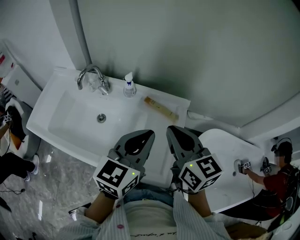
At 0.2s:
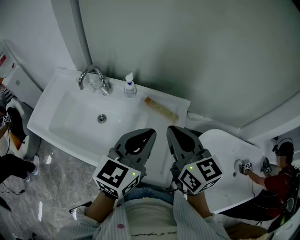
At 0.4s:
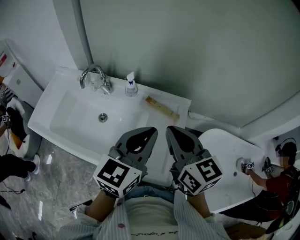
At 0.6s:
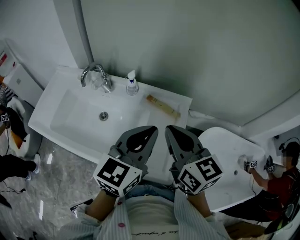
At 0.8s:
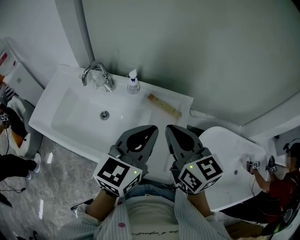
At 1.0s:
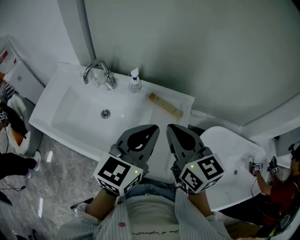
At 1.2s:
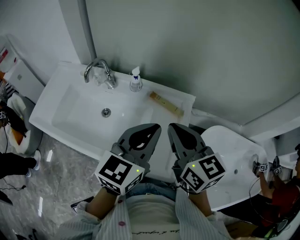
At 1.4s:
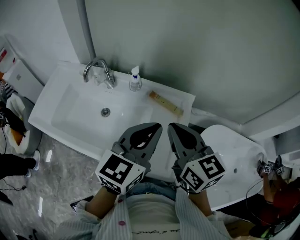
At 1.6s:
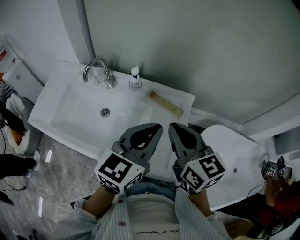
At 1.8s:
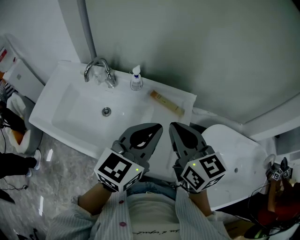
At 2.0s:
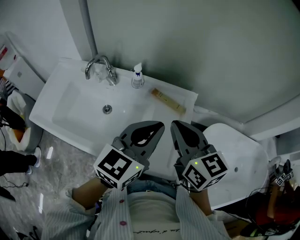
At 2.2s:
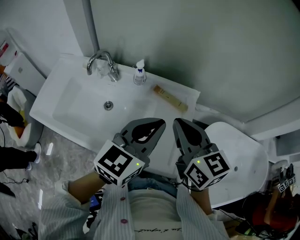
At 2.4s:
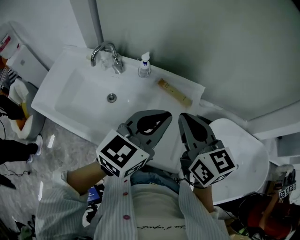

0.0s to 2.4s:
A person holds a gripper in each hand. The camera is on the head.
0.0s to 2.4s: The grippers stay close to where they were, moving slightly.

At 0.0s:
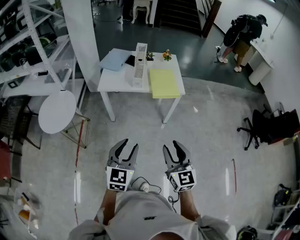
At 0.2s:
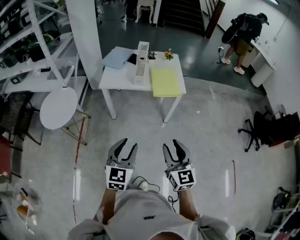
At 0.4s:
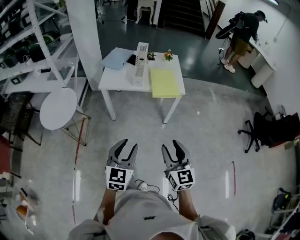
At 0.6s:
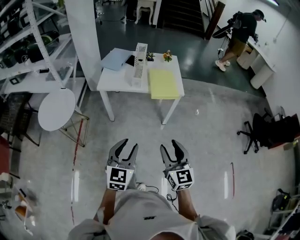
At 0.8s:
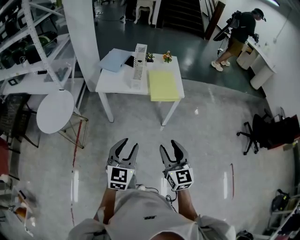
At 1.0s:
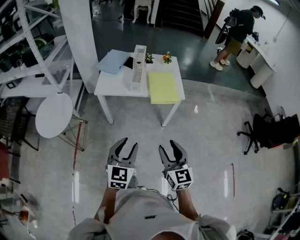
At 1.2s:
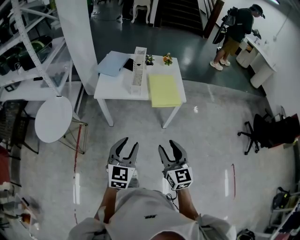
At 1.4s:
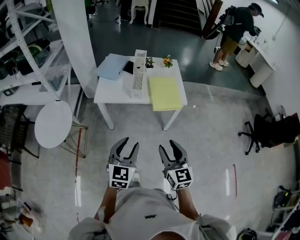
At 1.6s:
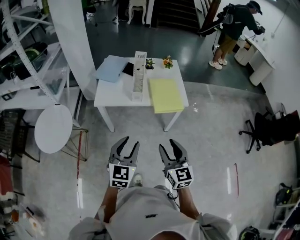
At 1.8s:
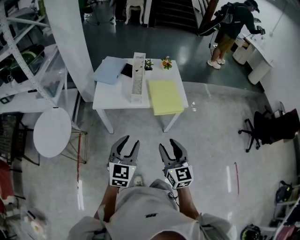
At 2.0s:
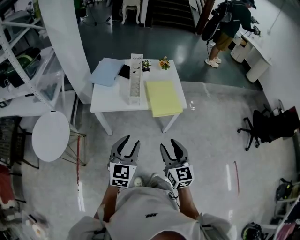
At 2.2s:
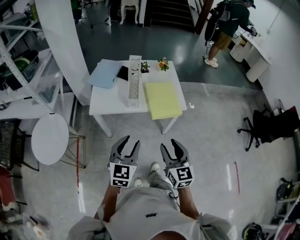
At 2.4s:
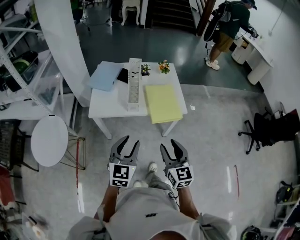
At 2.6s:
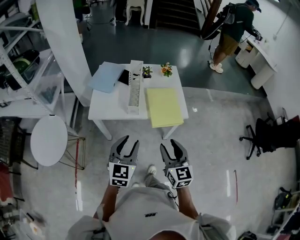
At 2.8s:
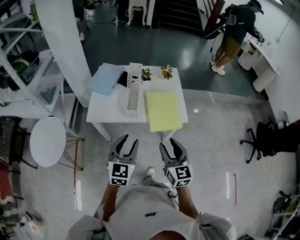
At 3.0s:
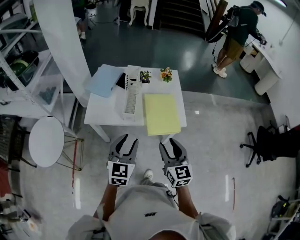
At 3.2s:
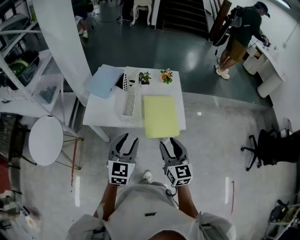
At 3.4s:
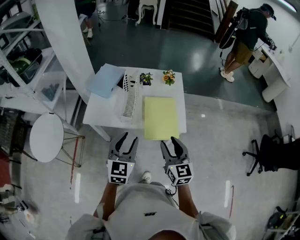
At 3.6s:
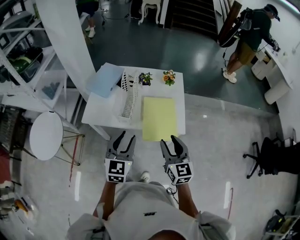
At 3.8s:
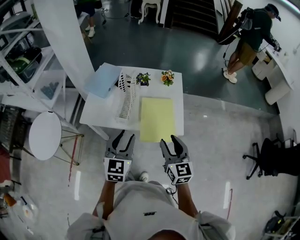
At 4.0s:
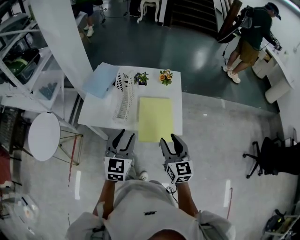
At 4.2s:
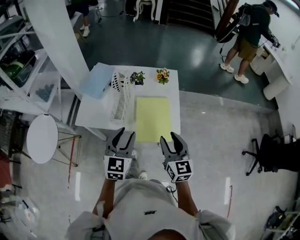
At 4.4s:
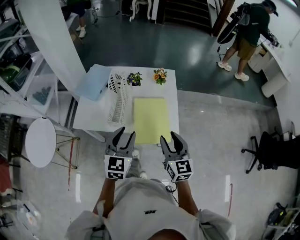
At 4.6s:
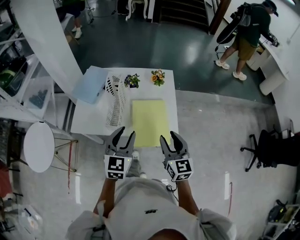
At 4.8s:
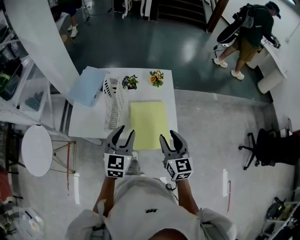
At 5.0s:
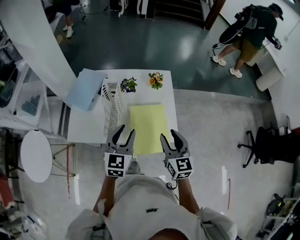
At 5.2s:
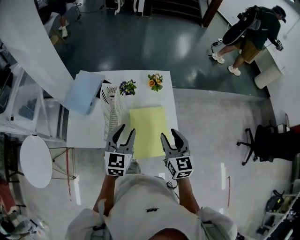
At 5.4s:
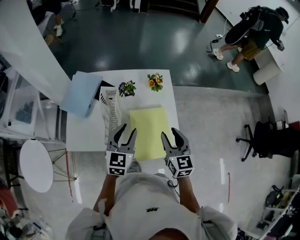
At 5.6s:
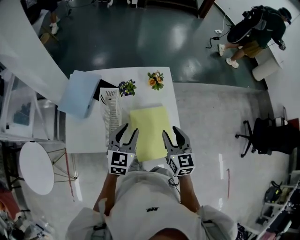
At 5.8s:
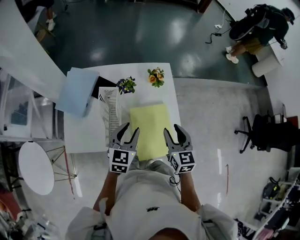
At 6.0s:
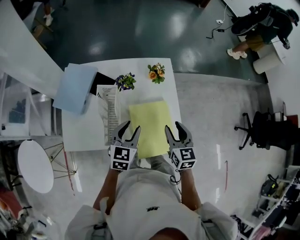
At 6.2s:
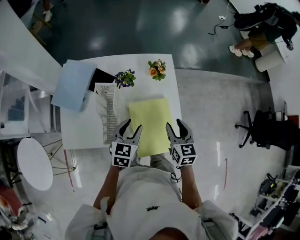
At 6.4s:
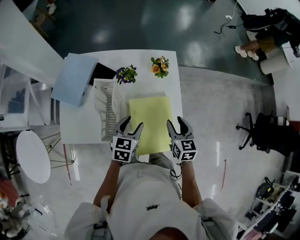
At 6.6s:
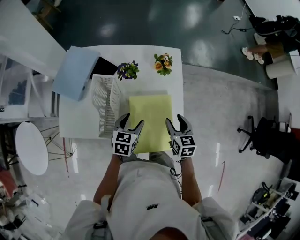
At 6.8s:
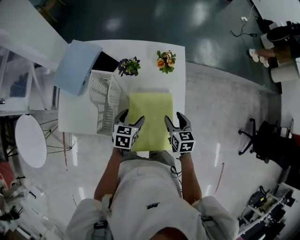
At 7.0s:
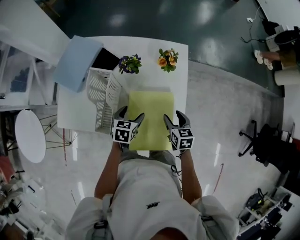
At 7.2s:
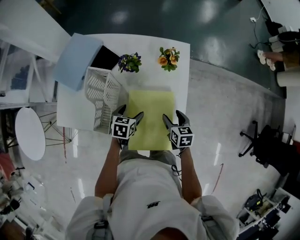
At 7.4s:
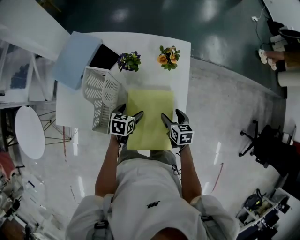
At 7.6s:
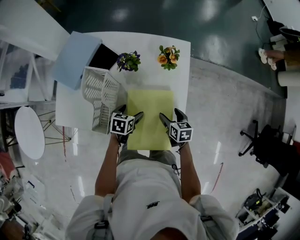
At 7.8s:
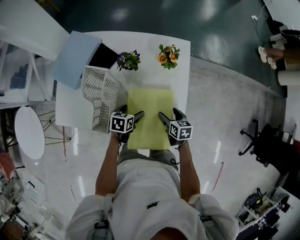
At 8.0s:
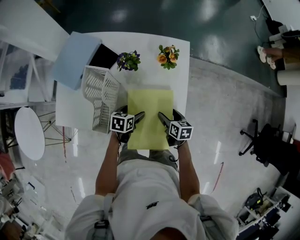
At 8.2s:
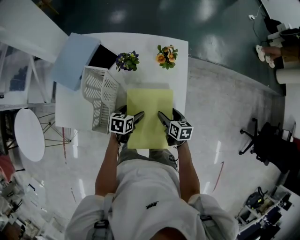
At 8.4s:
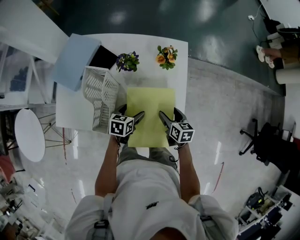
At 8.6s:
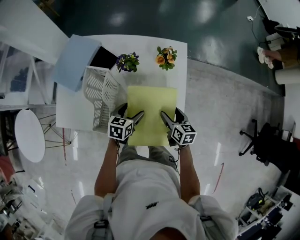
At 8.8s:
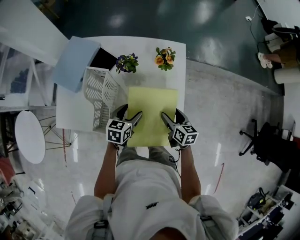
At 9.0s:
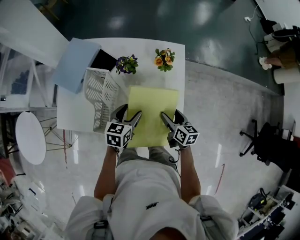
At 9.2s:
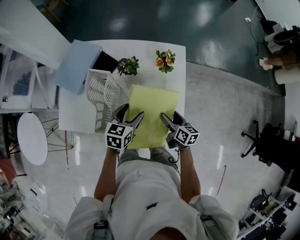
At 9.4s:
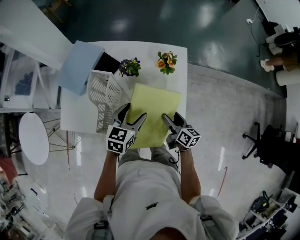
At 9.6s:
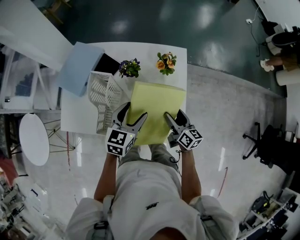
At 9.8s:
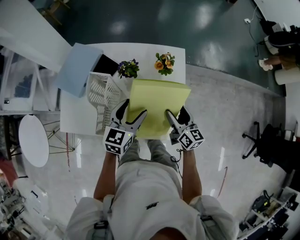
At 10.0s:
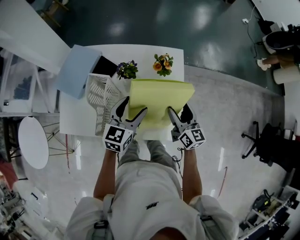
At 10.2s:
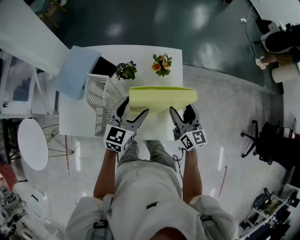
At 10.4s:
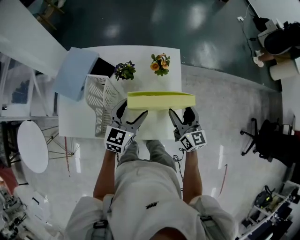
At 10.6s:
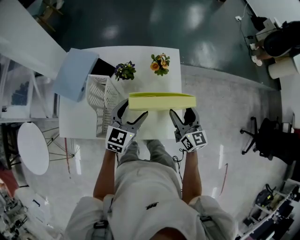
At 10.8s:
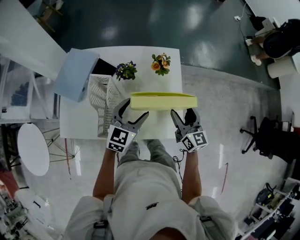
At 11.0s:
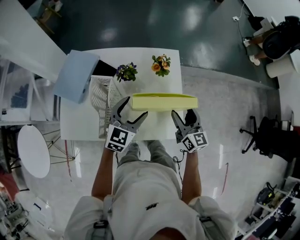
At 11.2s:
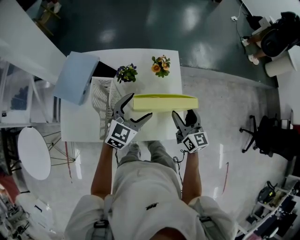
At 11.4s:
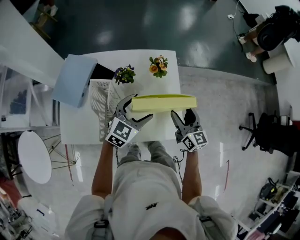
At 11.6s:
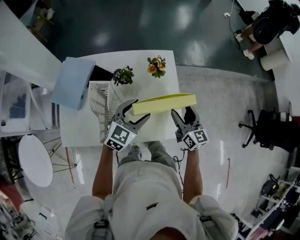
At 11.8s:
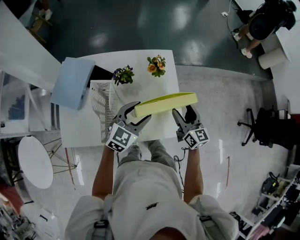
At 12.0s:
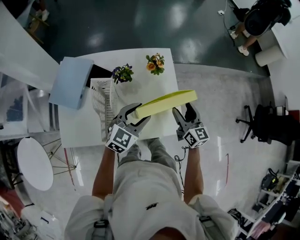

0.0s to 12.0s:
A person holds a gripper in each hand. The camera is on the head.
0.0s to 1.6s: The two grippers go approximately 20 cm forward.
1.6s to 3.0s: Both grippers move forward, some 20 cm.
3.0s to 4.4s: The right gripper heads to the right and forward, covering roughly 15 cm; the left gripper heads forward and to the right, covering some 15 cm.
4.4s to 6.0s: Both grippers move forward and downward, roughly 25 cm. The left gripper changes its angle by roughly 20 degrees.
6.0s to 7.6s: The two grippers go about 20 cm downward. The right gripper changes its angle by some 30 degrees, and opens its fingers; the left gripper changes its angle by roughly 40 degrees, and opens.
7.6s to 9.0s: The left gripper heads upward, covering about 10 cm, and turns by roughly 20 degrees; the right gripper turns by roughly 20 degrees.
9.0s to 10.4s: Both grippers move upward, about 10 cm. The left gripper swivels about 30 degrees. Meanwhile the right gripper rotates about 30 degrees.
10.4s to 12.0s: The left gripper rotates about 30 degrees.

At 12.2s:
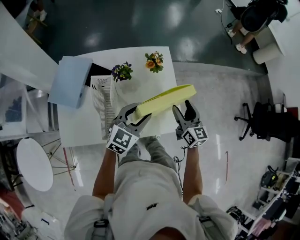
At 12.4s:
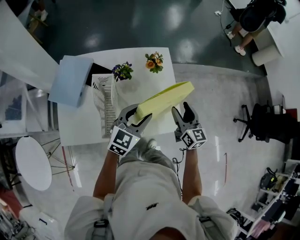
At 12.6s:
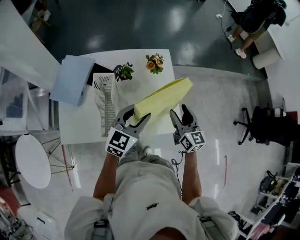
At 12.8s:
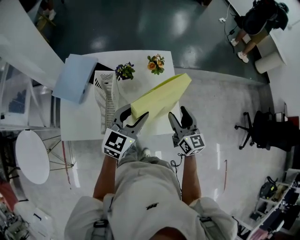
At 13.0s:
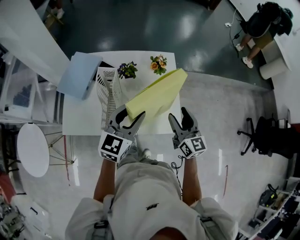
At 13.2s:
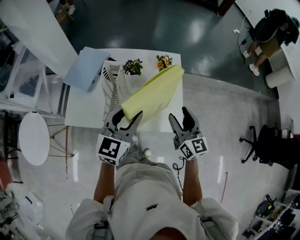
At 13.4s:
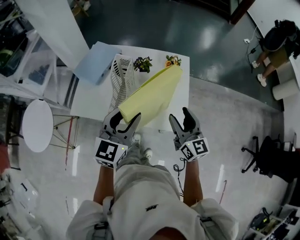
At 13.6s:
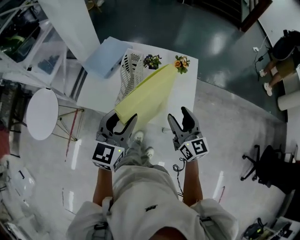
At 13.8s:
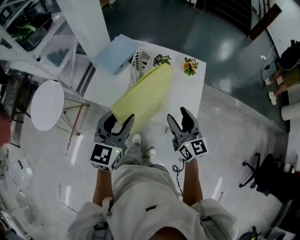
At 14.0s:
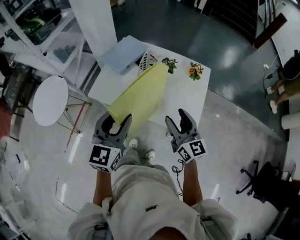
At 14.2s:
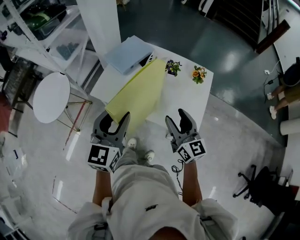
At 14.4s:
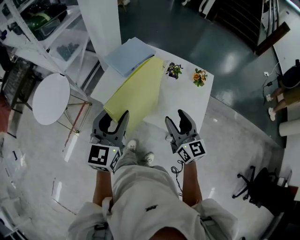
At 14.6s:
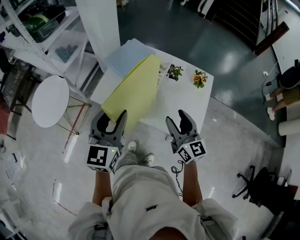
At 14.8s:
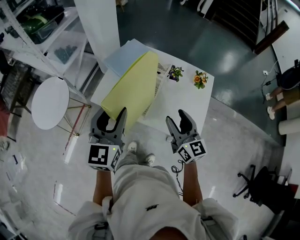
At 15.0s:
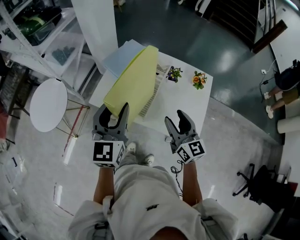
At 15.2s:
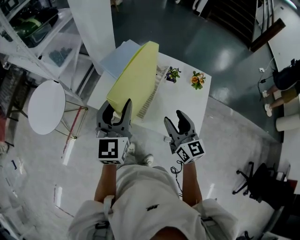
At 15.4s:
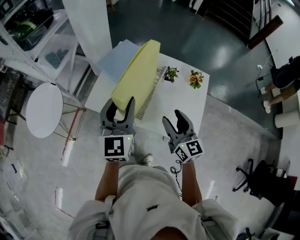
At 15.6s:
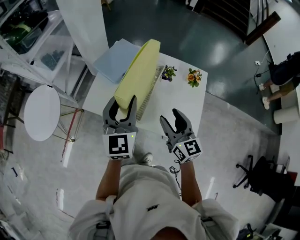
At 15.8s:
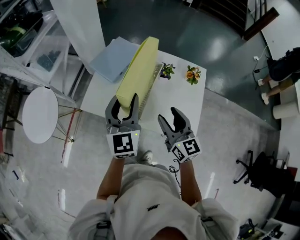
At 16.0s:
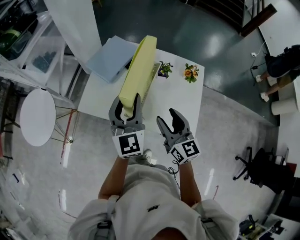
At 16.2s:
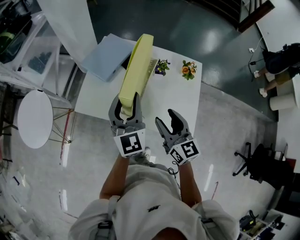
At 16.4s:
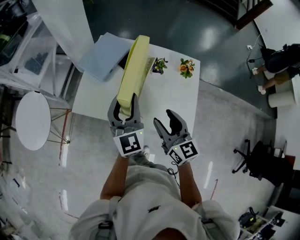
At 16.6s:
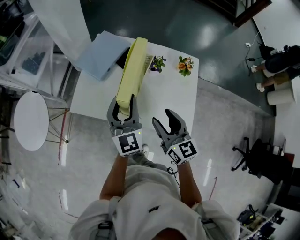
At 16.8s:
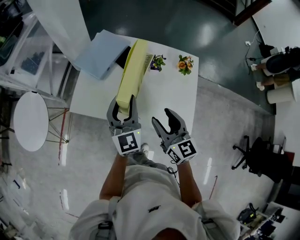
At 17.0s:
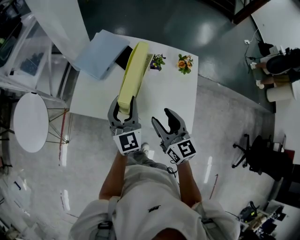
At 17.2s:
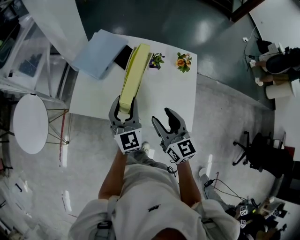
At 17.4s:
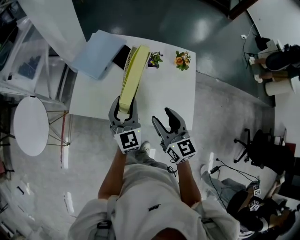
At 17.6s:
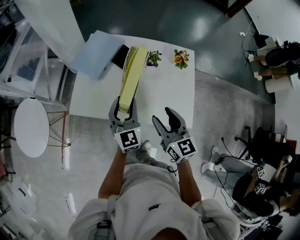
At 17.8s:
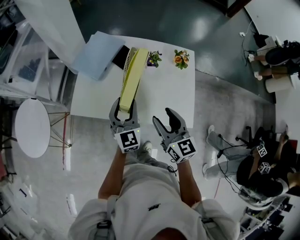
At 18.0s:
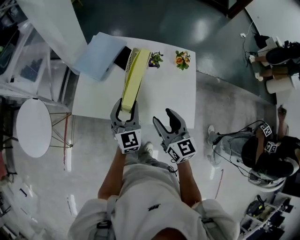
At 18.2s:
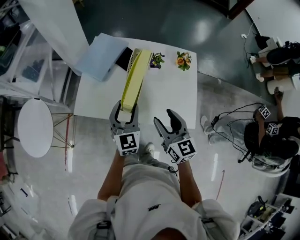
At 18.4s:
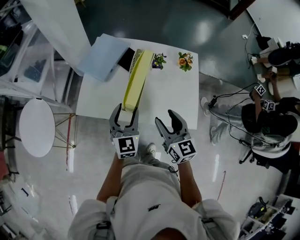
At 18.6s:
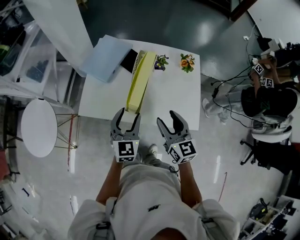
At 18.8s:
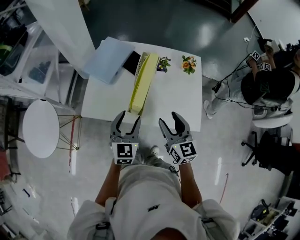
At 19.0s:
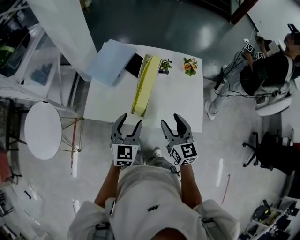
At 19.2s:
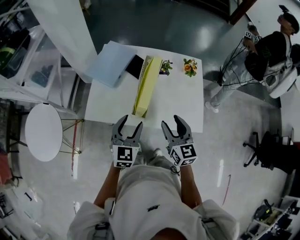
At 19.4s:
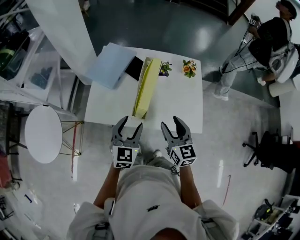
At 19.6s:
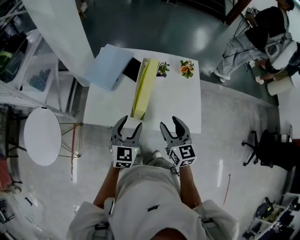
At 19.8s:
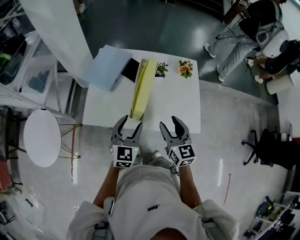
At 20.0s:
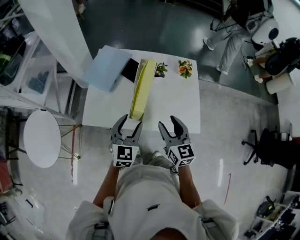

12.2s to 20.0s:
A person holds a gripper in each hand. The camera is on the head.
12.2s to 13.8s: The left gripper changes place by approximately 25 cm, and rotates about 40 degrees. The right gripper shifts by roughly 20 cm, and swivels some 30 degrees.
13.8s to 15.4s: Both grippers travel together forward and to the left, some 10 cm.
15.4s to 16.8s: The left gripper shifts roughly 10 cm downward and to the right.
16.8s to 18.4s: The left gripper heads downward, covering approximately 5 cm.
18.4s to 20.0s: The grippers move only a little.

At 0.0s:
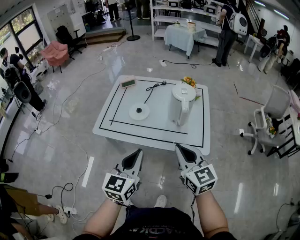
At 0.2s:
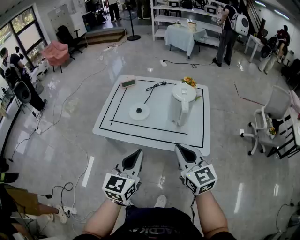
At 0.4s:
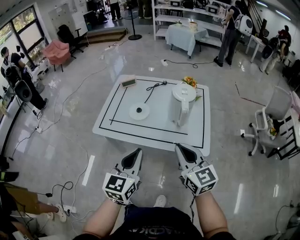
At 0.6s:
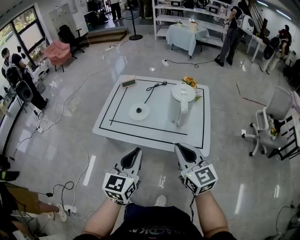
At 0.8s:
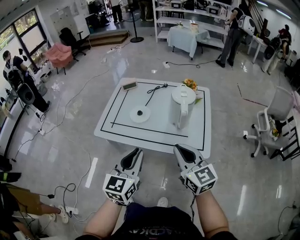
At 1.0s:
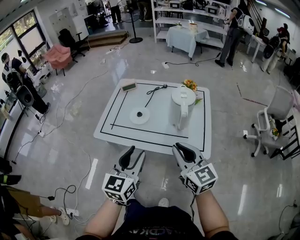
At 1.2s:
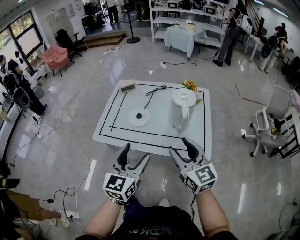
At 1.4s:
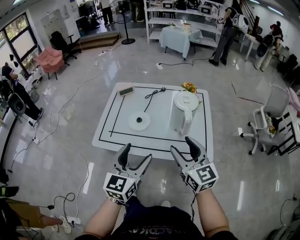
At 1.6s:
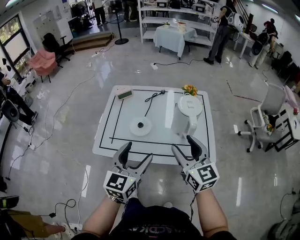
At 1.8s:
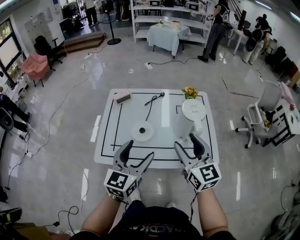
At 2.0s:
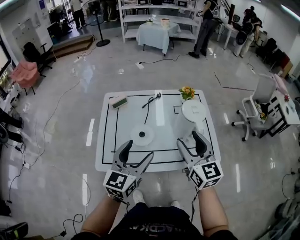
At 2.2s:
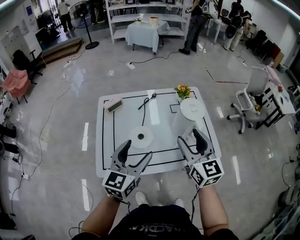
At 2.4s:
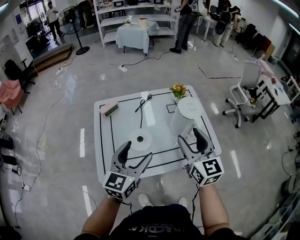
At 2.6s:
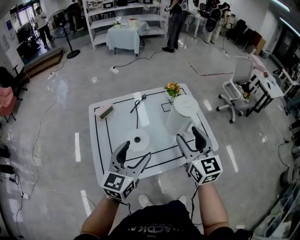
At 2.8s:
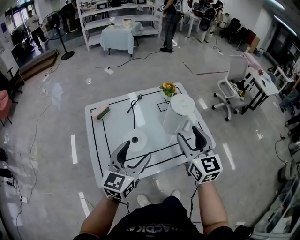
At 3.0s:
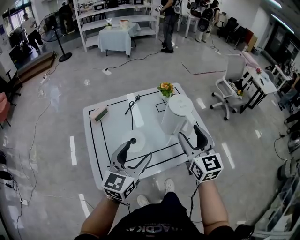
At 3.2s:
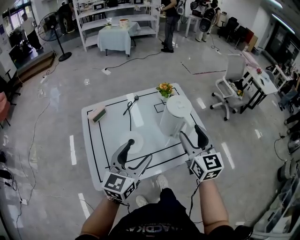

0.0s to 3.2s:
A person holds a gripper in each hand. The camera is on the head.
0.0s to 1.6s: The grippers both shift forward by roughly 10 cm. The left gripper opens. The right gripper opens up.
1.6s to 3.2s: The right gripper moves about 10 cm, and changes its angle by about 30 degrees; the left gripper moves roughly 10 cm, and swivels about 30 degrees.
